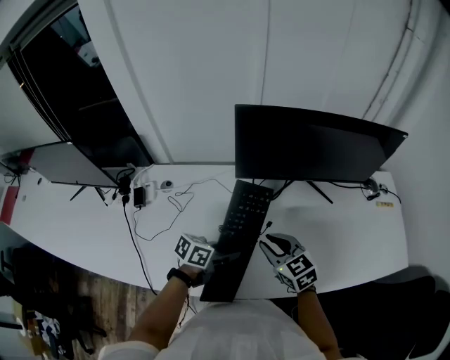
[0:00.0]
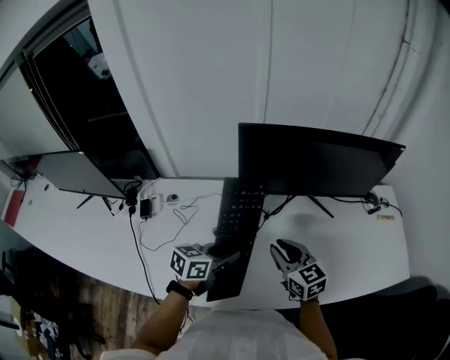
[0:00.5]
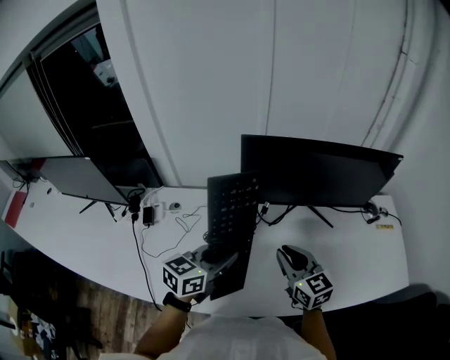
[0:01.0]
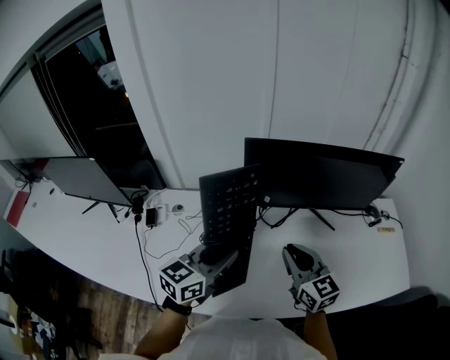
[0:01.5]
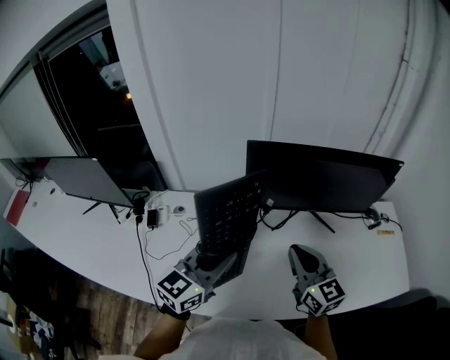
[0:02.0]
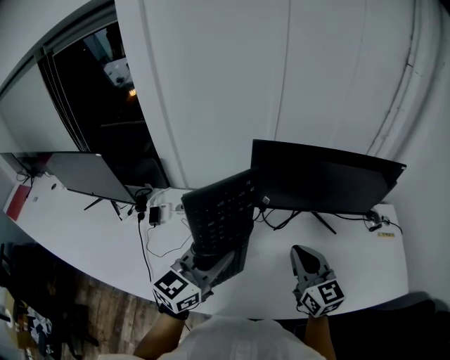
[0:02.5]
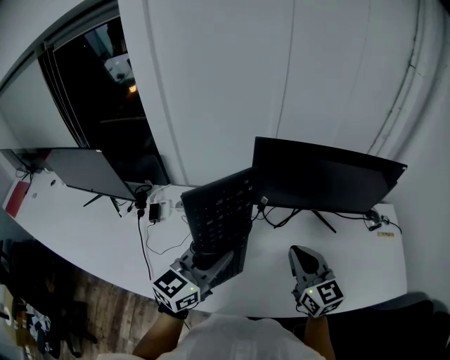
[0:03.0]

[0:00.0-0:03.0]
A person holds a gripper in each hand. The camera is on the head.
0:00.0 to 0:01.5: The left gripper heads upward, covering some 20 cm, and changes its angle by some 40 degrees. Meanwhile the right gripper moves upward, some 10 cm, and turns by about 20 degrees.
0:01.5 to 0:03.0: The grippers move only a little.

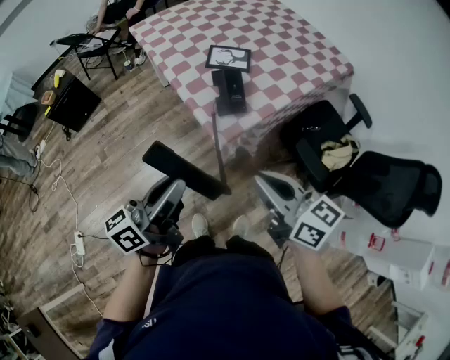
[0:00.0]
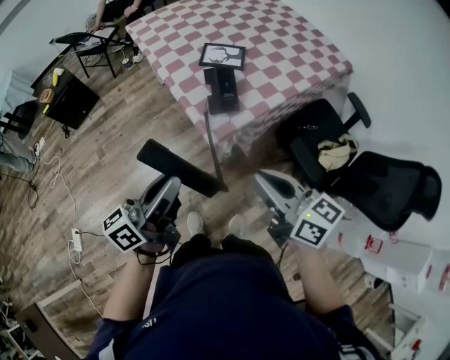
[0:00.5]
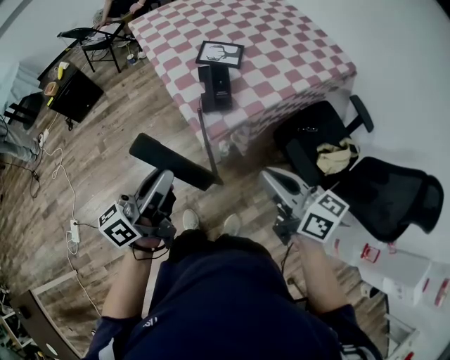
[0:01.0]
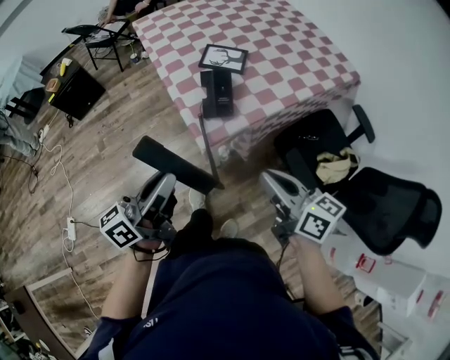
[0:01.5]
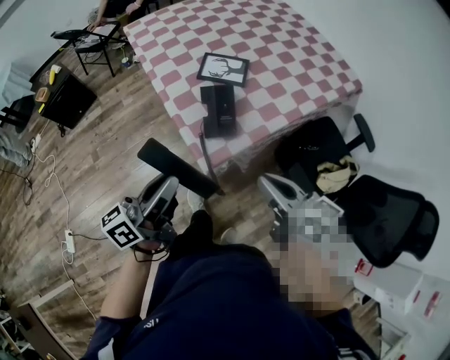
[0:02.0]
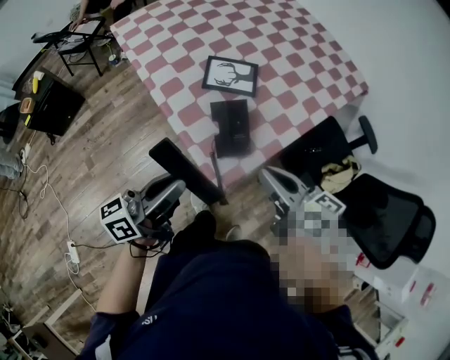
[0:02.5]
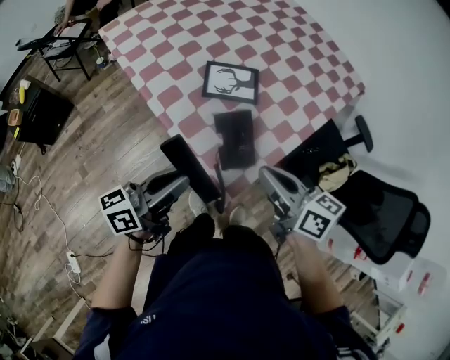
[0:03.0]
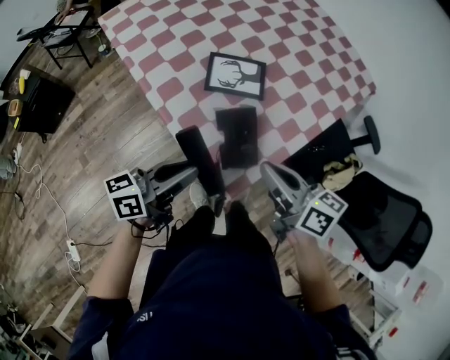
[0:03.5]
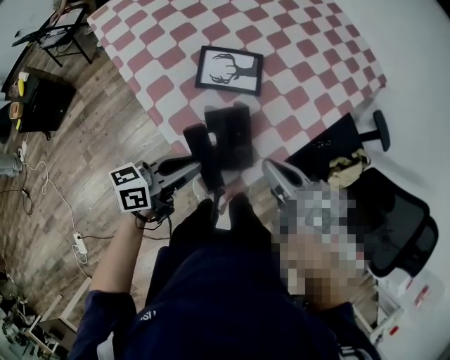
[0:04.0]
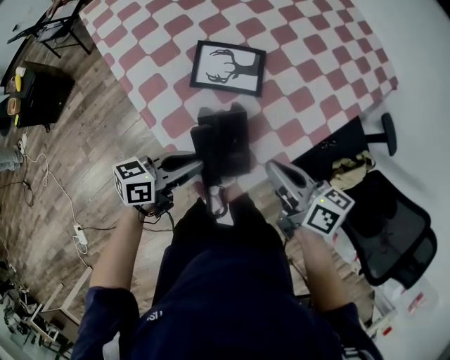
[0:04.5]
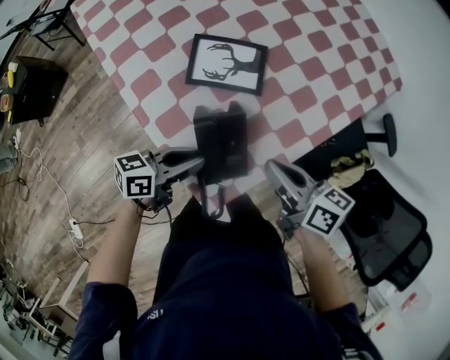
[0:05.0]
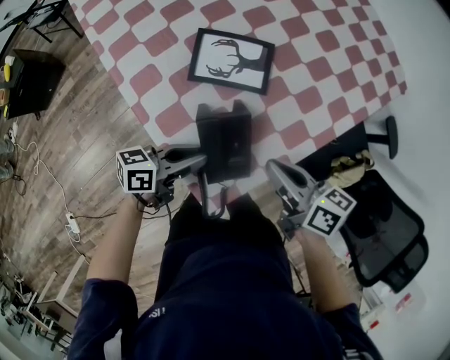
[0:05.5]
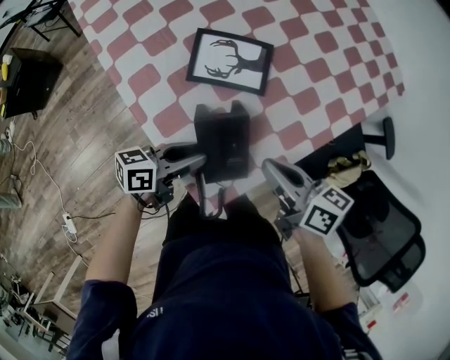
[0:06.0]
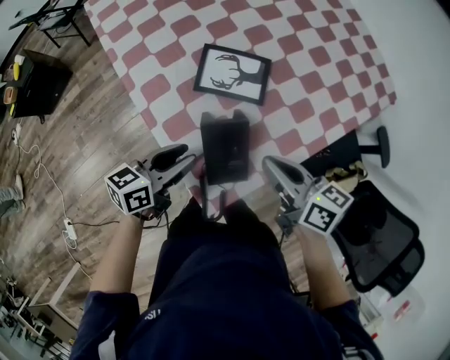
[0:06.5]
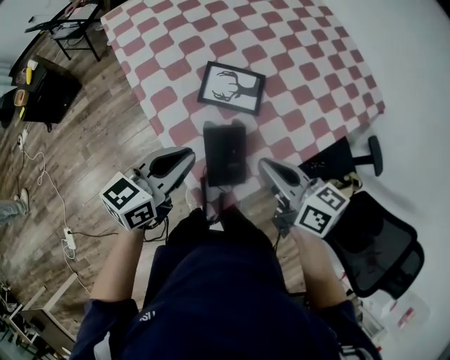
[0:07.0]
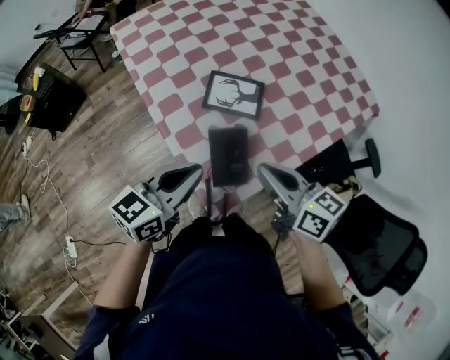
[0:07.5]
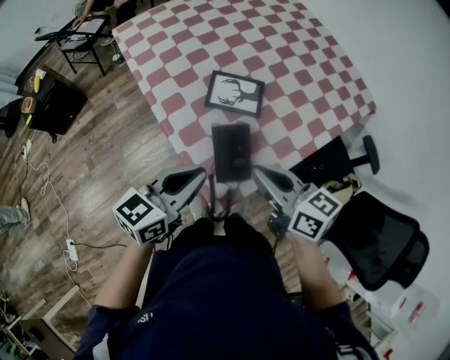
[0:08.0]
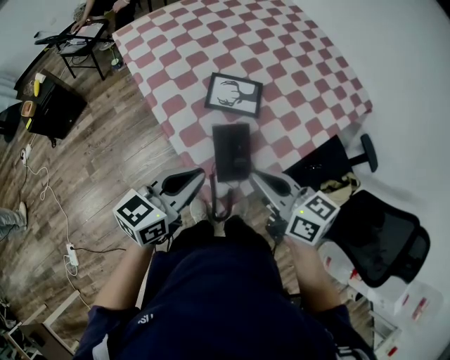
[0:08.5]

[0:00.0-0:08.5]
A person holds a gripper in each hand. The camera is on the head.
0:00.0 to 0:02.0: The right gripper shifts roughly 15 cm forward, to the right and downward, while the left gripper heads forward and to the right, covering roughly 10 cm.
0:02.0 to 0:04.0: The right gripper shifts some 20 cm forward; the left gripper moves forward and downward, some 25 cm, and changes its angle by roughly 30 degrees.
0:04.0 to 0:06.5: The right gripper moves forward, some 5 cm; the left gripper goes approximately 5 cm downward, and opens.
0:06.5 to 0:08.5: The right gripper heads upward, backward and to the left, covering approximately 15 cm; the left gripper shifts roughly 15 cm upward and backward, turns by about 20 degrees, and closes its fingers.

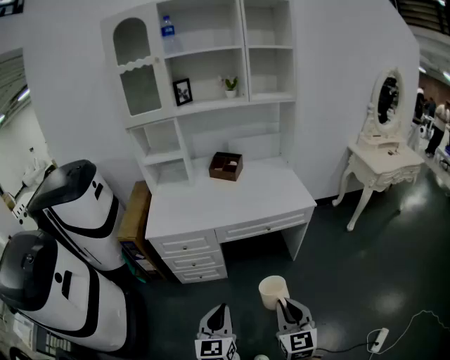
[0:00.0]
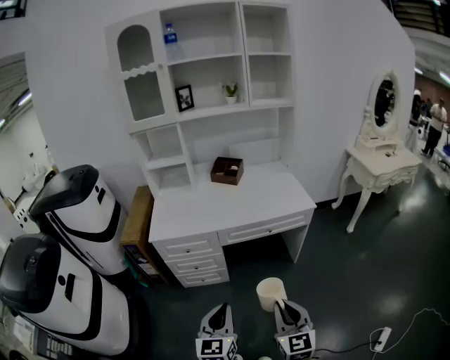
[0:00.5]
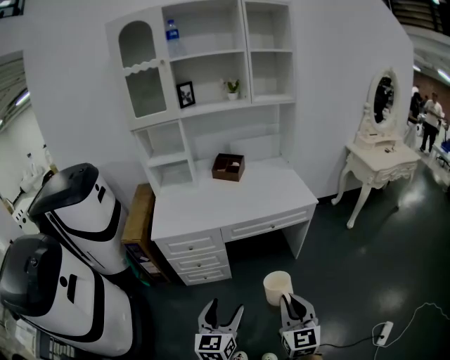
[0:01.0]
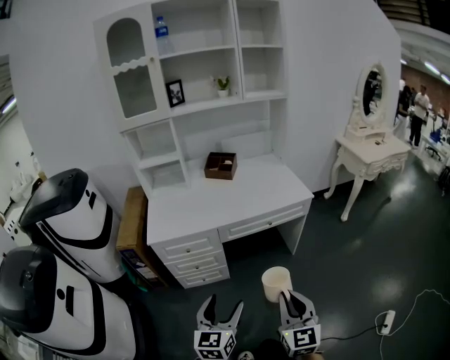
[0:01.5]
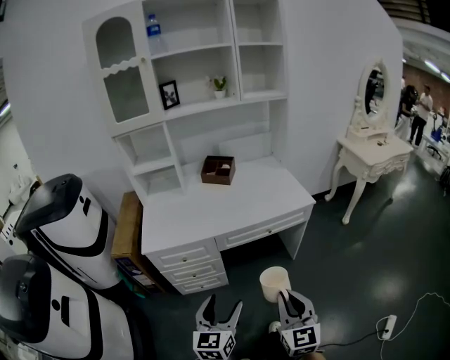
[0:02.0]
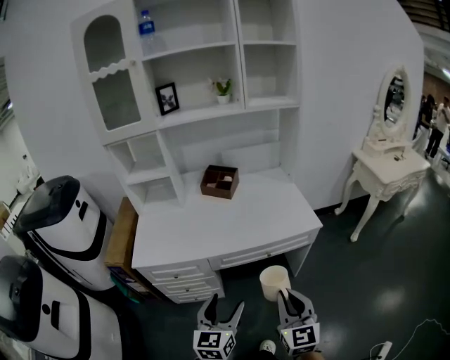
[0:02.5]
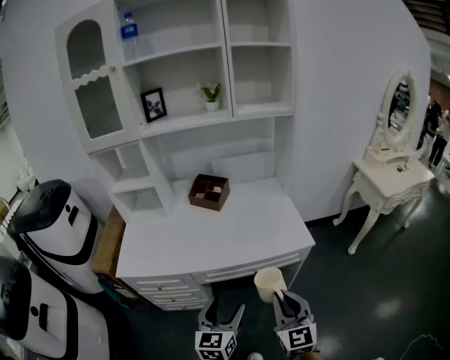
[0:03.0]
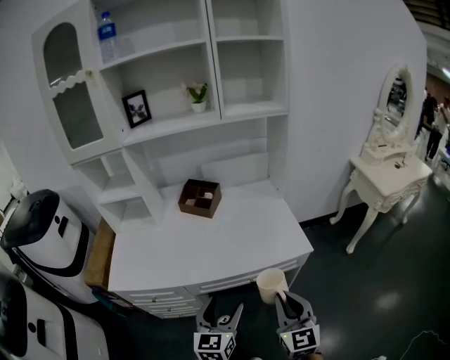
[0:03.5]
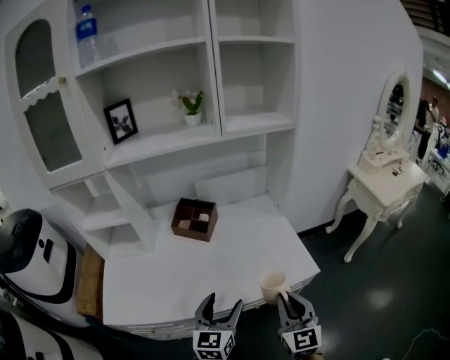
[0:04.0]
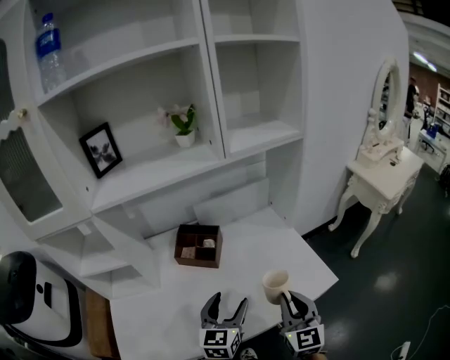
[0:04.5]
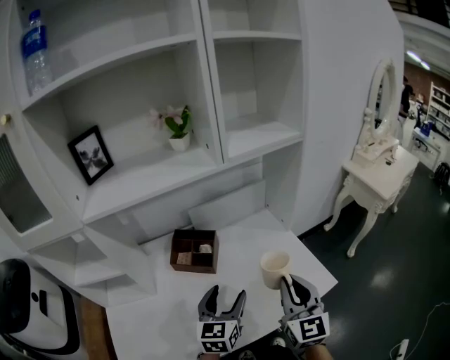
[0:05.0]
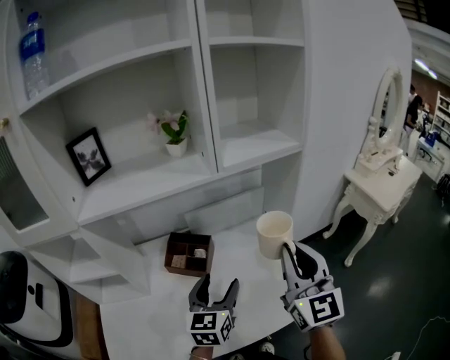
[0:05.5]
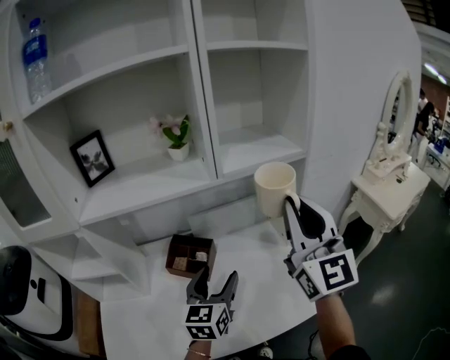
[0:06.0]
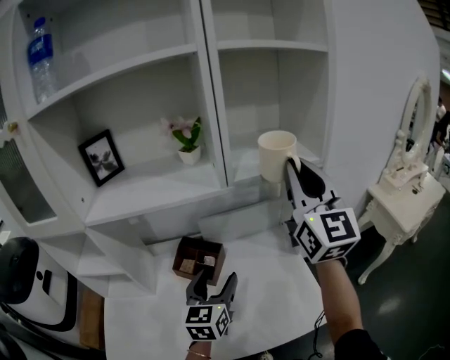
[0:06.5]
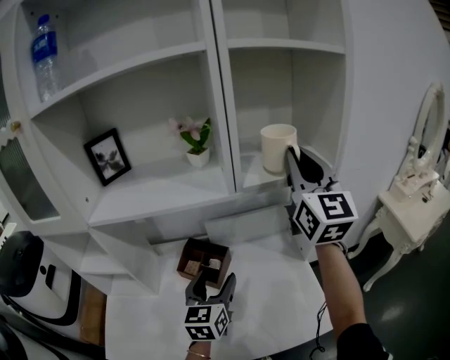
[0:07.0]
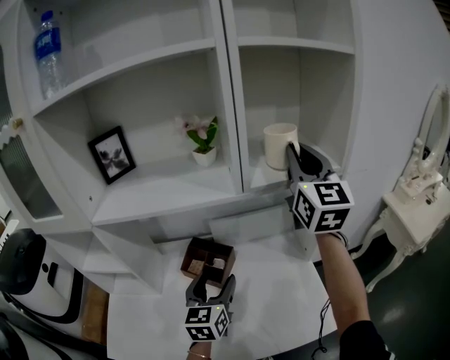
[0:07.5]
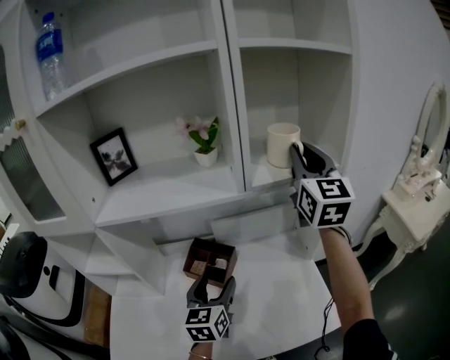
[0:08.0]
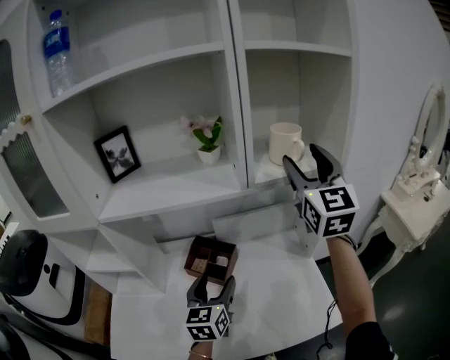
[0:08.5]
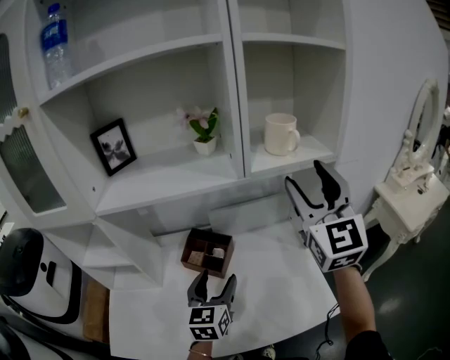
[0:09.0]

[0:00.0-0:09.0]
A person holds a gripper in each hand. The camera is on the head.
0:00.0 to 0:02.0: The right gripper ends up approximately 5 cm from where it was. Meanwhile the left gripper moves forward, roughly 5 cm, and opens its fingers.
0:02.0 to 0:04.5: The pair of grippers is taken forward, approximately 50 cm.
0:04.5 to 0:07.0: The left gripper heads forward and upward, covering some 20 cm. The right gripper is displaced upward and forward by about 50 cm, and swivels some 30 degrees.
0:07.0 to 0:09.0: The left gripper moves approximately 5 cm, while the right gripper travels backward by roughly 10 cm, and opens its fingers.

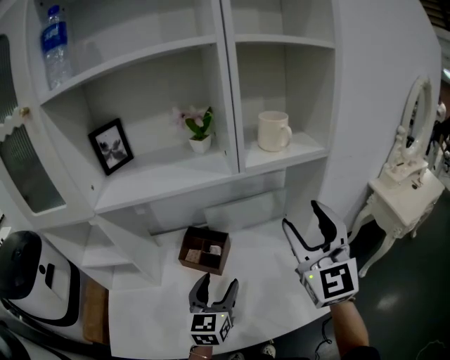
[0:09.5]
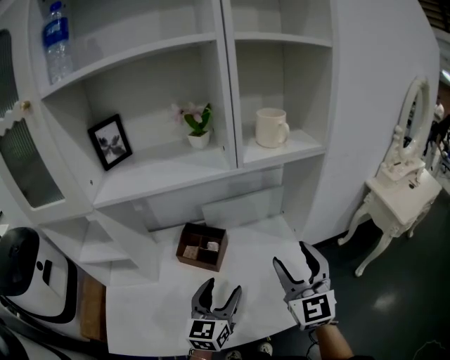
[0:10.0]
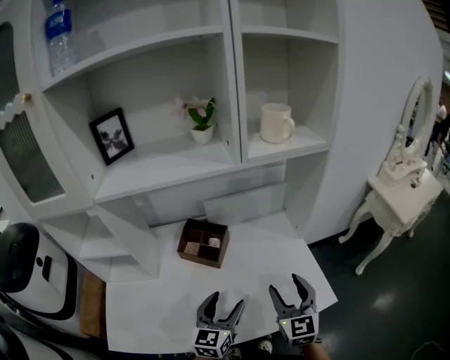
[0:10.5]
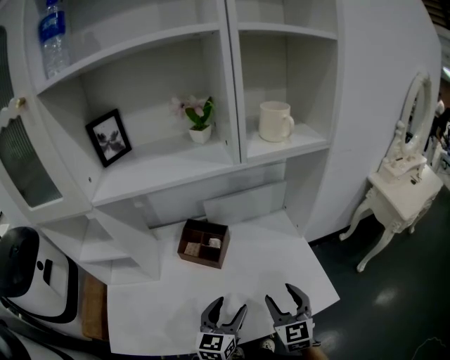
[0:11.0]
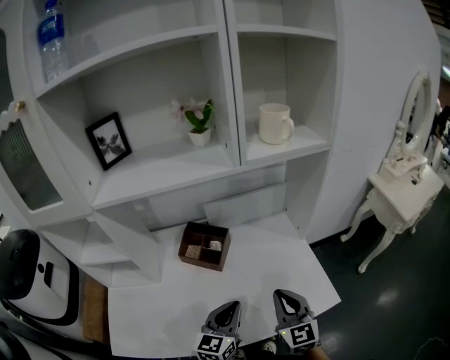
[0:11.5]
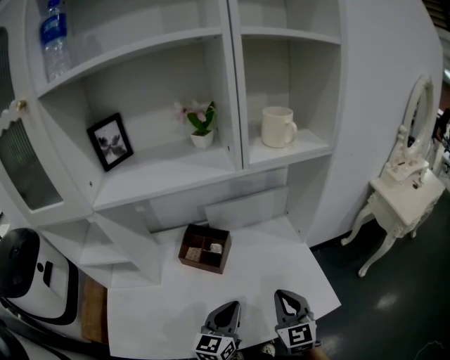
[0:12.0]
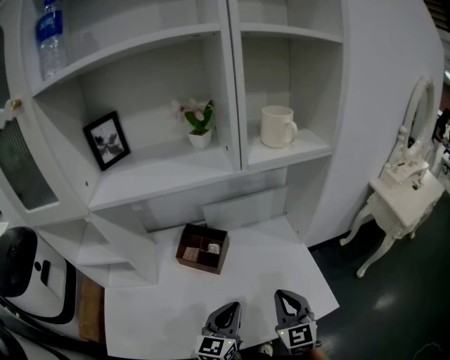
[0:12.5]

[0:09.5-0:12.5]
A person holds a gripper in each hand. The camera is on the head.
0:09.5 to 0:11.0: The left gripper moves downward and backward, some 10 cm, while the right gripper moves downward, some 30 cm, and swivels some 30 degrees.
0:11.0 to 0:12.5: The right gripper closes its fingers. Meanwhile the left gripper closes its fingers.
